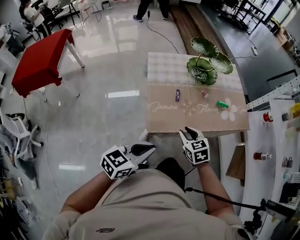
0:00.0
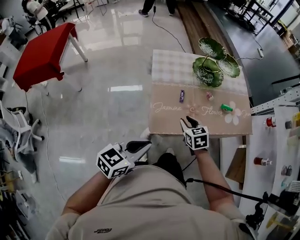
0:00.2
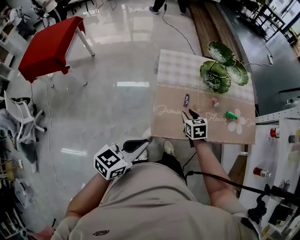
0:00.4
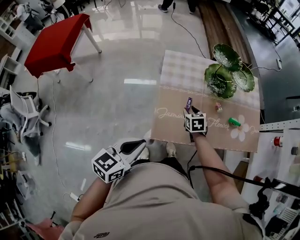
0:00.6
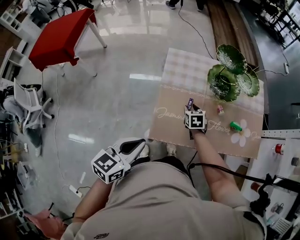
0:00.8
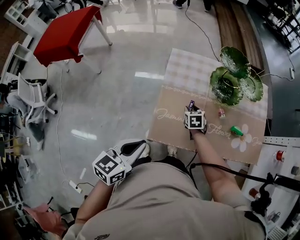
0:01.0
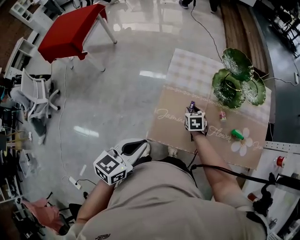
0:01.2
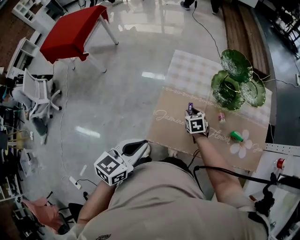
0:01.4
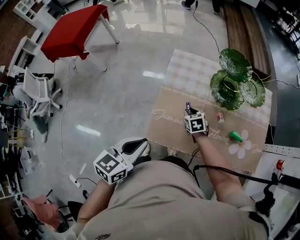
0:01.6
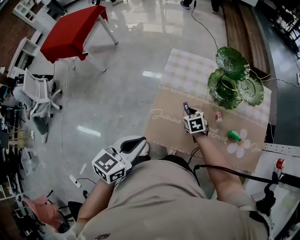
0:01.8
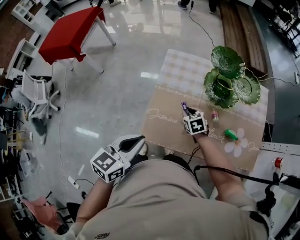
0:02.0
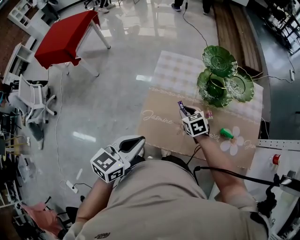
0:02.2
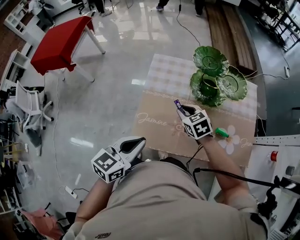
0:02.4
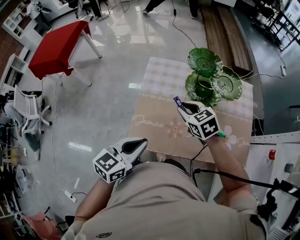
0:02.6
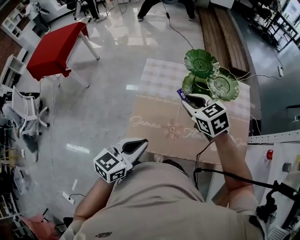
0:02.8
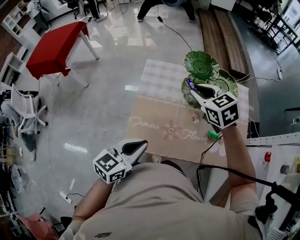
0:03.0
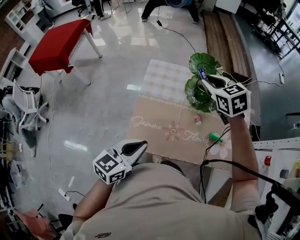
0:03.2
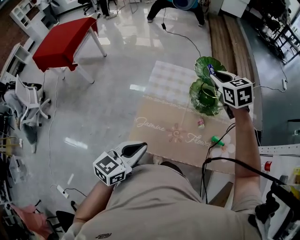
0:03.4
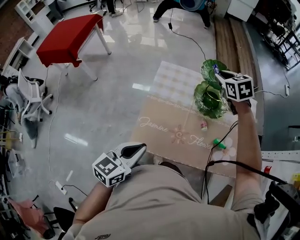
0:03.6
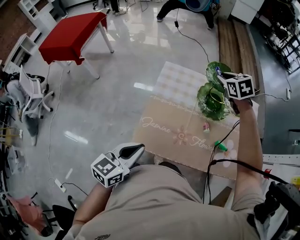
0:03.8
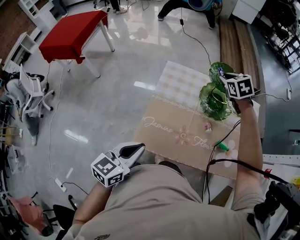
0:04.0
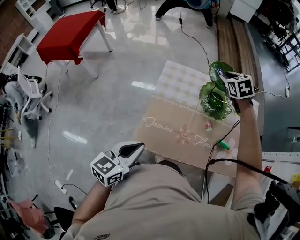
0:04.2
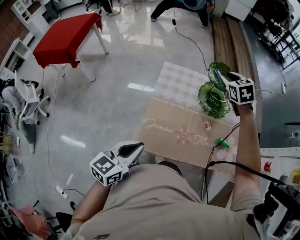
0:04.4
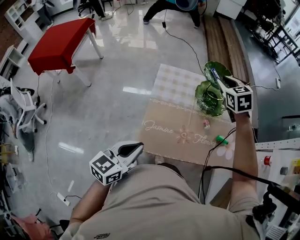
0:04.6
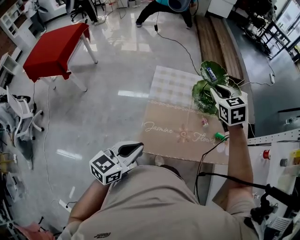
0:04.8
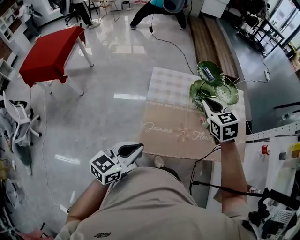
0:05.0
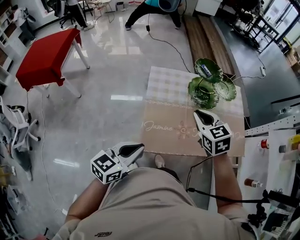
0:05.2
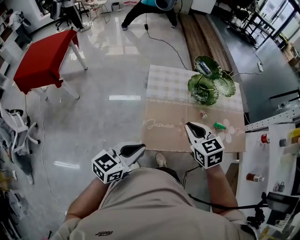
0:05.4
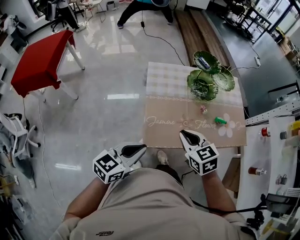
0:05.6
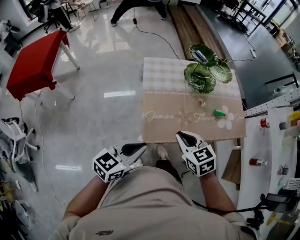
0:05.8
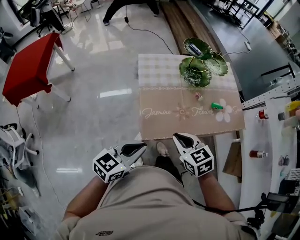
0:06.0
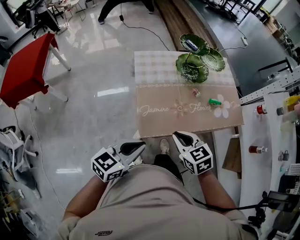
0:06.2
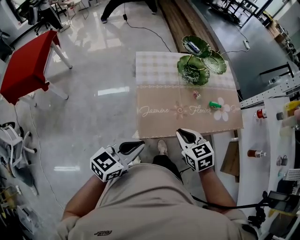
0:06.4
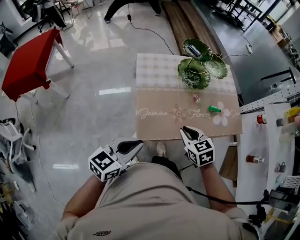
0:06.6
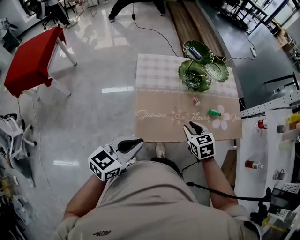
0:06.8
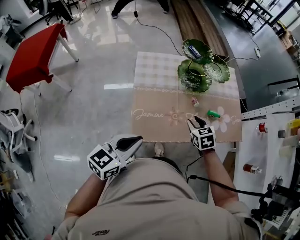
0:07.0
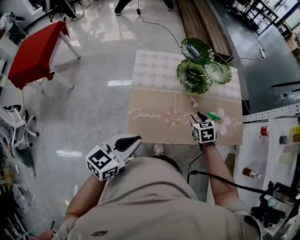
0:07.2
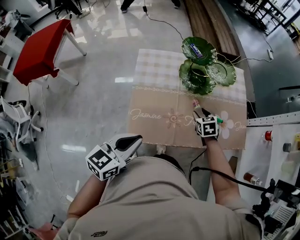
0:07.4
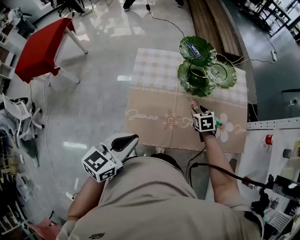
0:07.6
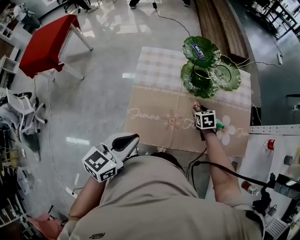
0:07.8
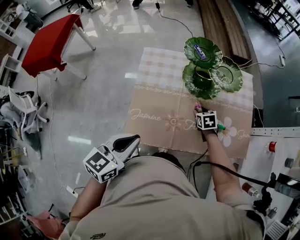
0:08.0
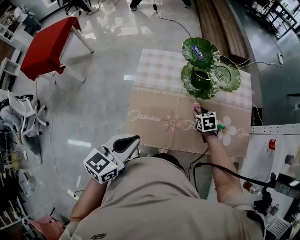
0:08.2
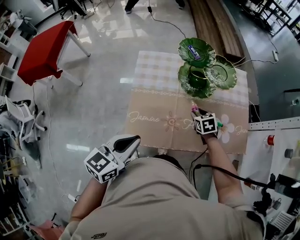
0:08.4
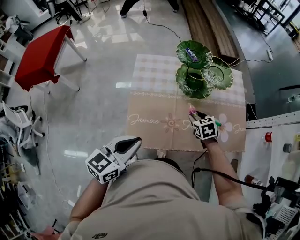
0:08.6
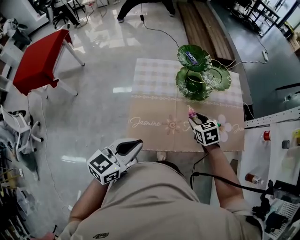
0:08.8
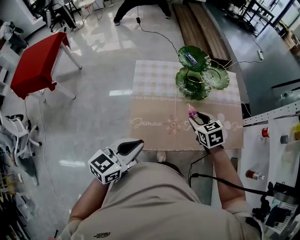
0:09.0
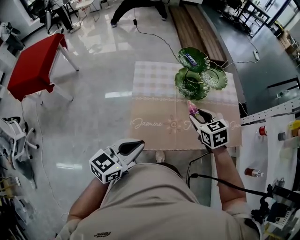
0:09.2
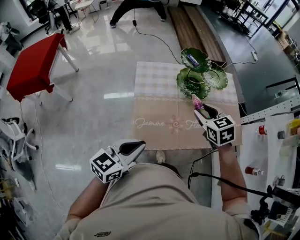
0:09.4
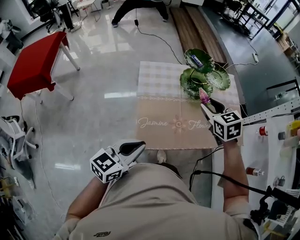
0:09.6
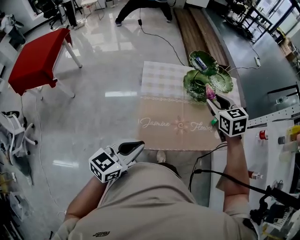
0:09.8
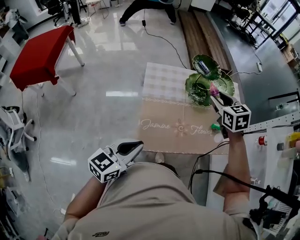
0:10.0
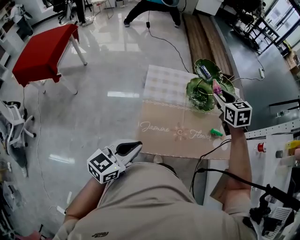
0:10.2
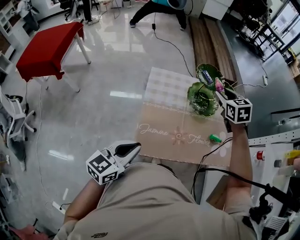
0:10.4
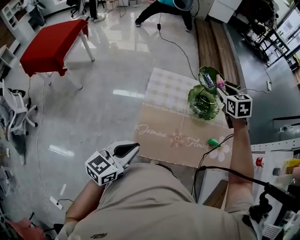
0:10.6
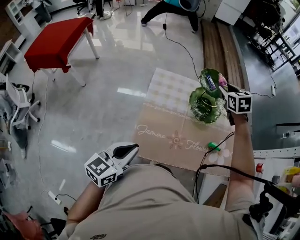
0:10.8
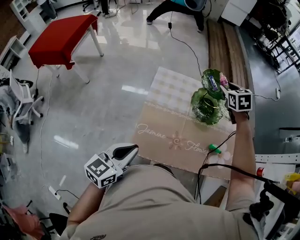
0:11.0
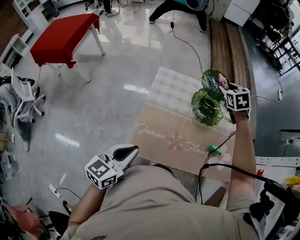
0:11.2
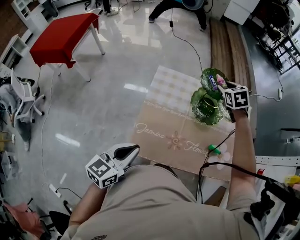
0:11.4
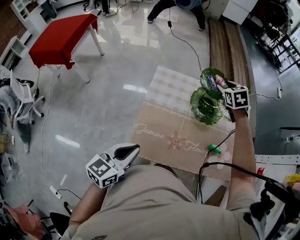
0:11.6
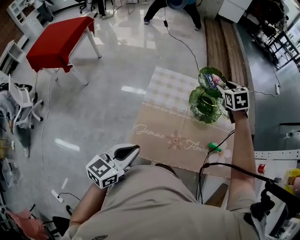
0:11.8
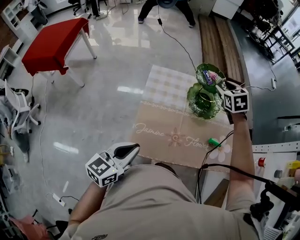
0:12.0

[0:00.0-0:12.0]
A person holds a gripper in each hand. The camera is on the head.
0:00.0 to 0:01.6: The left gripper moves approximately 15 cm, and rotates approximately 40 degrees; the right gripper moves roughly 30 cm.
0:01.6 to 0:03.0: The left gripper goes about 10 cm to the right, while the right gripper shifts roughly 30 cm upward, and swivels some 20 degrees.
0:03.0 to 0:04.4: The left gripper moves to the left, some 10 cm. Meanwhile the right gripper goes some 15 cm forward.
0:04.4 to 0:06.0: The left gripper shifts approximately 5 cm backward, and changes its angle by about 30 degrees; the right gripper heads backward, covering approximately 40 cm, turns by approximately 20 degrees, and closes its fingers.
0:06.0 to 0:07.6: The right gripper heads forward, downward and to the right, covering about 40 cm, and opens its fingers. The left gripper heads forward and to the right, covering some 15 cm.
0:07.6 to 0:09.0: The right gripper moves upward and backward, roughly 15 cm.
0:09.0 to 0:10.4: The left gripper moves to the left, roughly 5 cm, while the right gripper goes about 20 cm forward and upward.
0:10.4 to 0:12.0: The right gripper heads forward, covering approximately 10 cm.

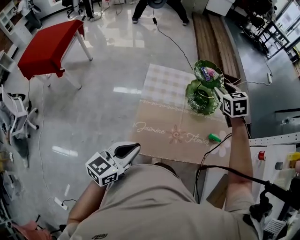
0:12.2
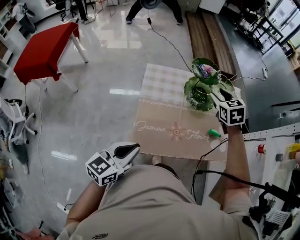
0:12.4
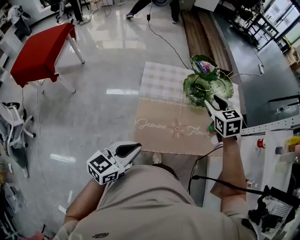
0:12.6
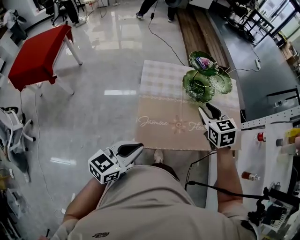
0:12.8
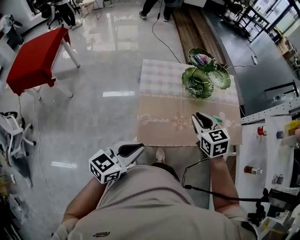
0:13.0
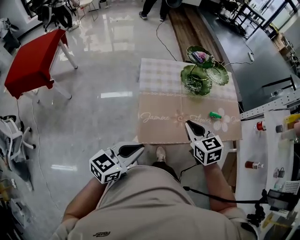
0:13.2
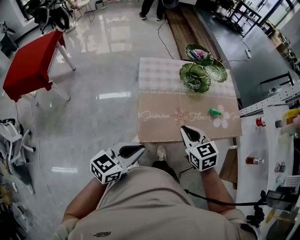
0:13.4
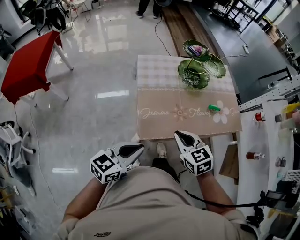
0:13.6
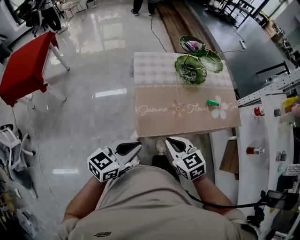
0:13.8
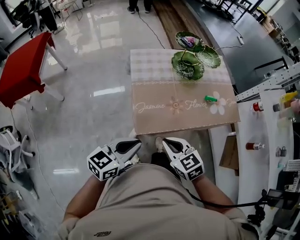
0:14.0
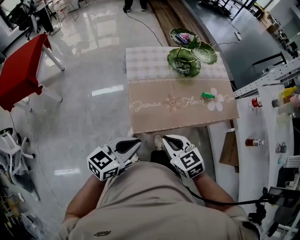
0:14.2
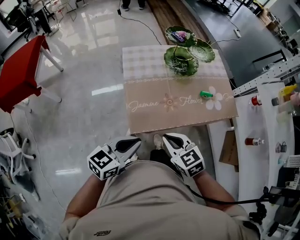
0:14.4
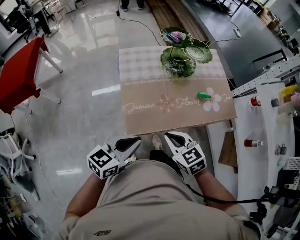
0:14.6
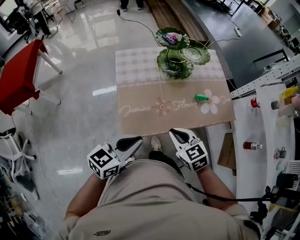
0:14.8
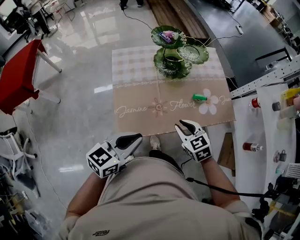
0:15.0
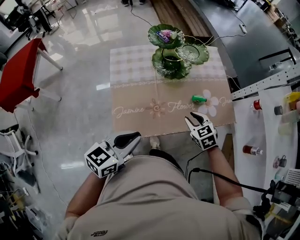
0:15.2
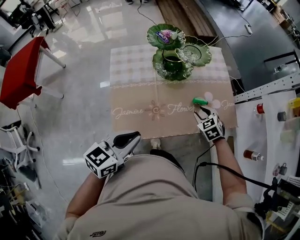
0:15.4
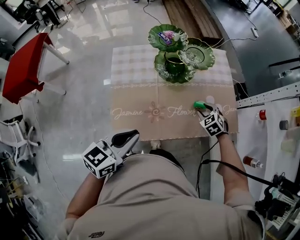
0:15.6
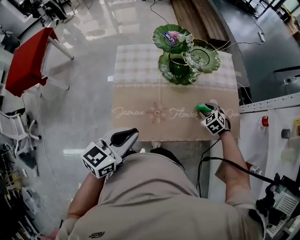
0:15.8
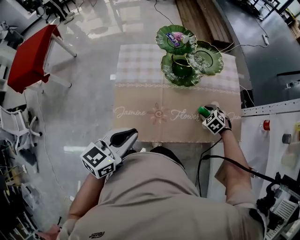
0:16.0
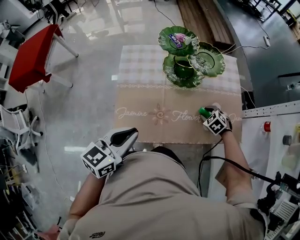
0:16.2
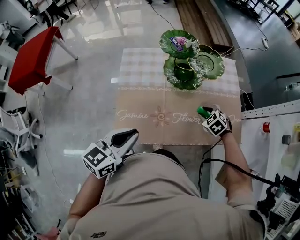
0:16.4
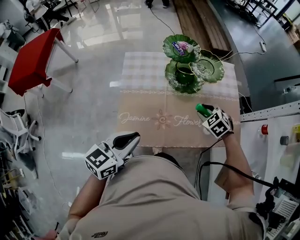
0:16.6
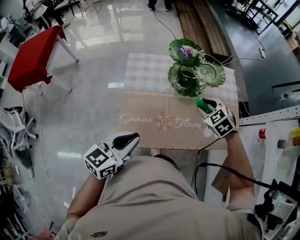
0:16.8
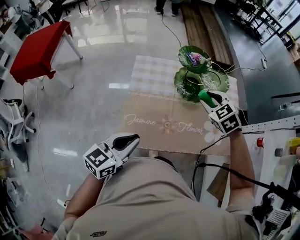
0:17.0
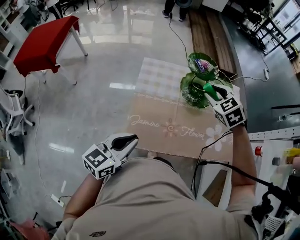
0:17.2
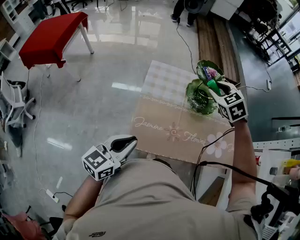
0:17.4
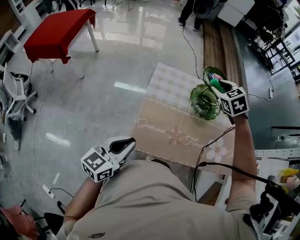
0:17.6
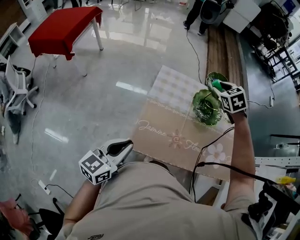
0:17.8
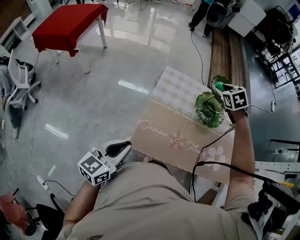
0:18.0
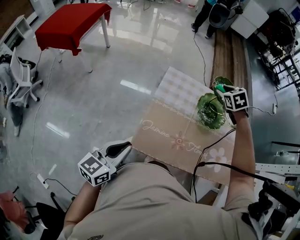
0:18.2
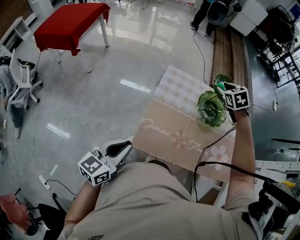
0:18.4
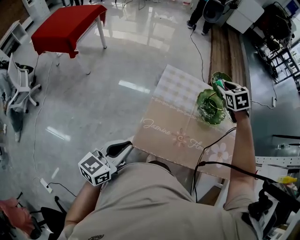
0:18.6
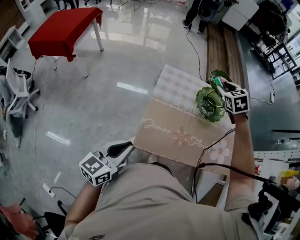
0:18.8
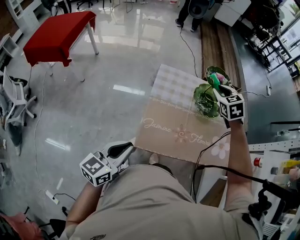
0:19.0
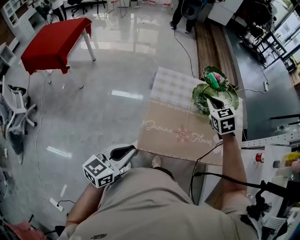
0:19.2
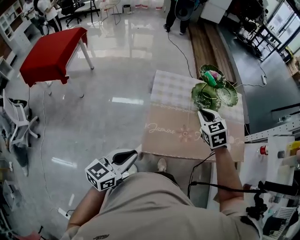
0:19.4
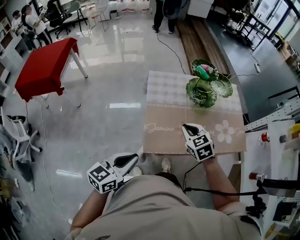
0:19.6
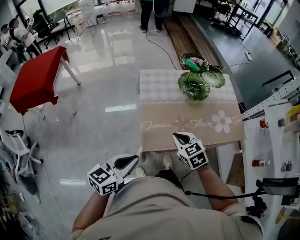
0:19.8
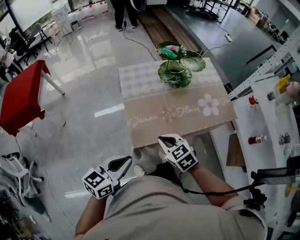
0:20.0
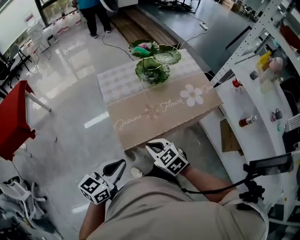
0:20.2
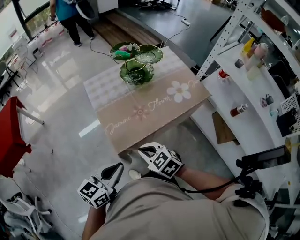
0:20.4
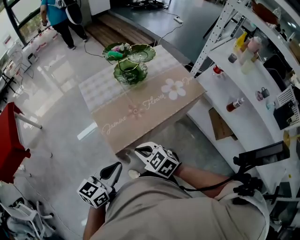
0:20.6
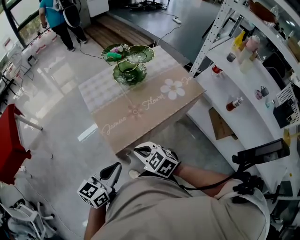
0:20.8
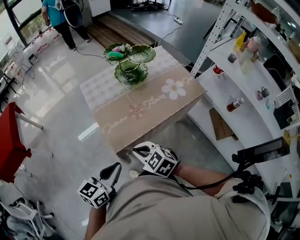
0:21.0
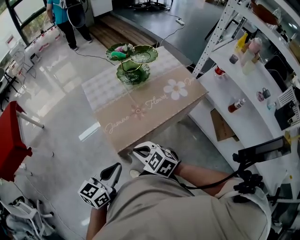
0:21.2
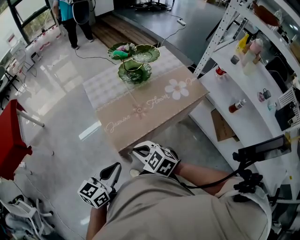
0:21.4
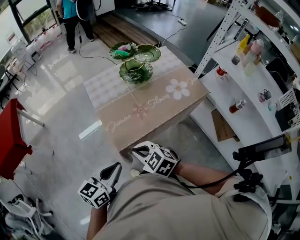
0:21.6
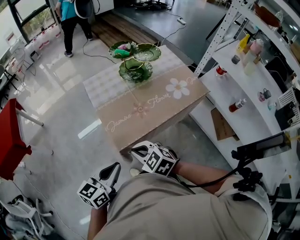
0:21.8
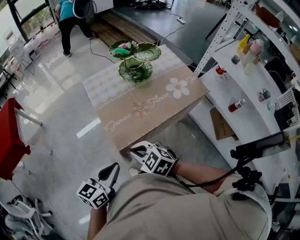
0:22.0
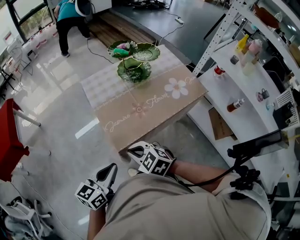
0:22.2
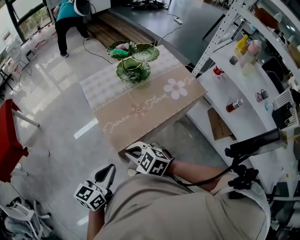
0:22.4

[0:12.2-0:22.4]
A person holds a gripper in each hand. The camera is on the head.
0:12.2 to 0:13.6: The left gripper travels backward by roughly 10 cm, and rotates approximately 20 degrees; the right gripper shifts about 40 cm backward, and closes up.
0:13.6 to 0:15.2: The right gripper moves to the right, forward and downward, about 30 cm, and opens. The left gripper shifts approximately 15 cm to the right and forward.
0:15.2 to 0:16.6: The right gripper heads forward, covering approximately 10 cm, and swivels some 30 degrees.
0:16.6 to 0:18.0: The left gripper goes some 15 cm to the left and backward, and rotates roughly 20 degrees; the right gripper is displaced forward, to the left and upward by approximately 30 cm.
0:18.0 to 0:19.4: The left gripper ends up about 5 cm from where it was; the right gripper goes some 20 cm backward, and closes up.
0:19.4 to 0:21.0: The left gripper is displaced to the right and backward by some 10 cm, and rotates some 30 degrees, while the right gripper moves backward, about 30 cm.
0:21.0 to 0:22.4: The right gripper moves to the left, some 5 cm.

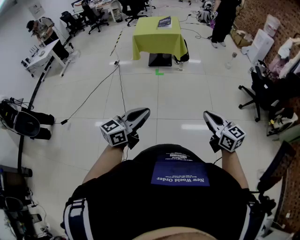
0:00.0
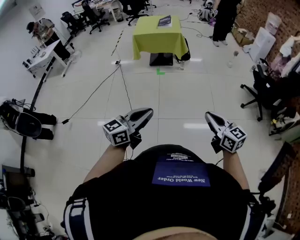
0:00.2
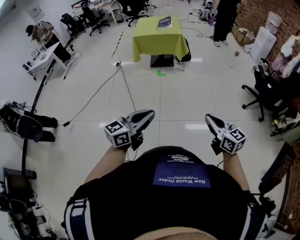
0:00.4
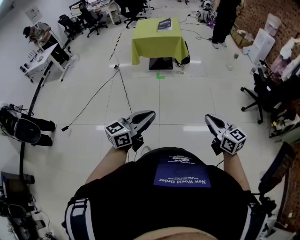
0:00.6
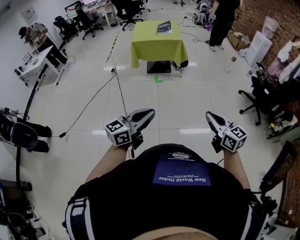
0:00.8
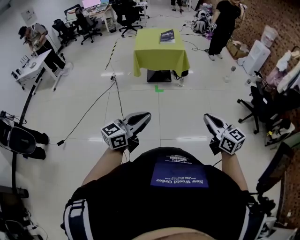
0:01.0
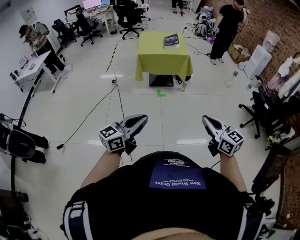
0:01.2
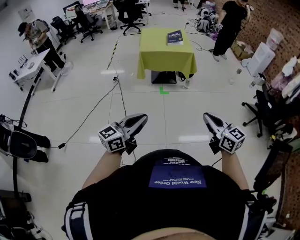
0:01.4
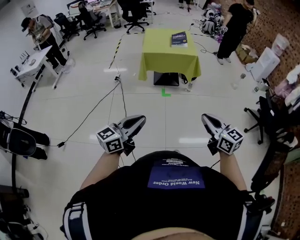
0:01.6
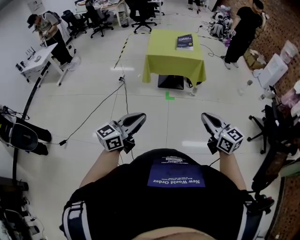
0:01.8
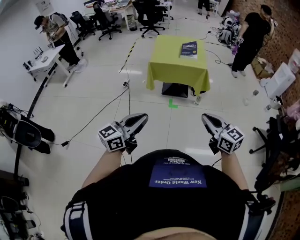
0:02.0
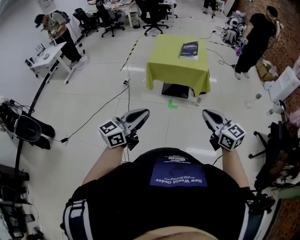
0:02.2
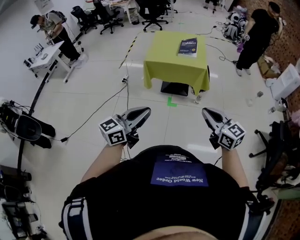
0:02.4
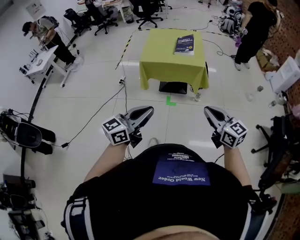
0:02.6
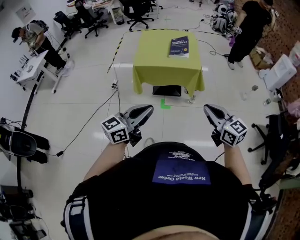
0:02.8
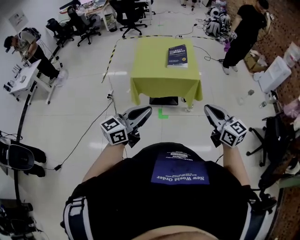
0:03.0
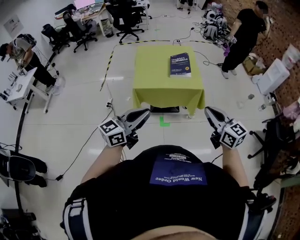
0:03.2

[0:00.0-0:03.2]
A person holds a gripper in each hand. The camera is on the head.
0:00.0 to 0:01.6: Both grippers move forward and to the left, some 40 cm.
0:01.6 to 0:03.2: The pair of grippers is taken forward, about 50 cm.
